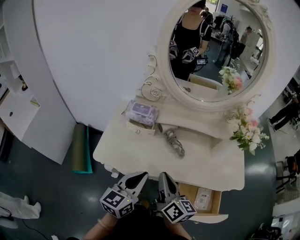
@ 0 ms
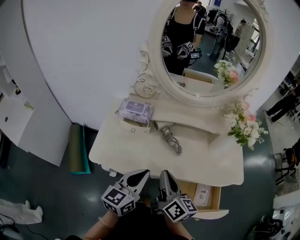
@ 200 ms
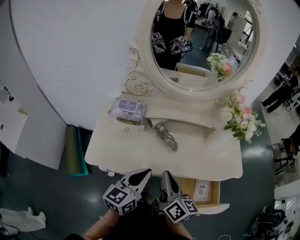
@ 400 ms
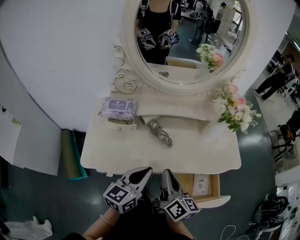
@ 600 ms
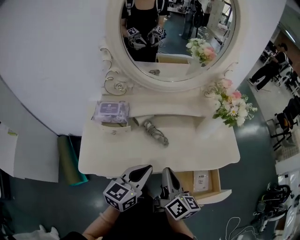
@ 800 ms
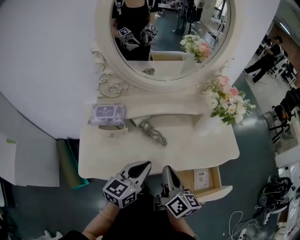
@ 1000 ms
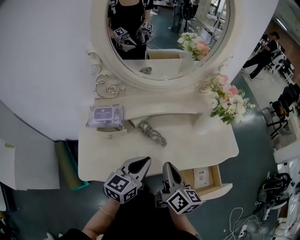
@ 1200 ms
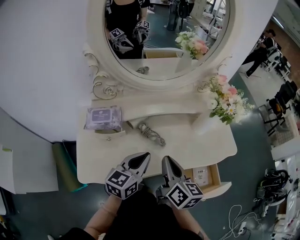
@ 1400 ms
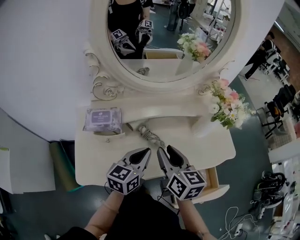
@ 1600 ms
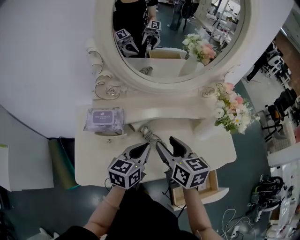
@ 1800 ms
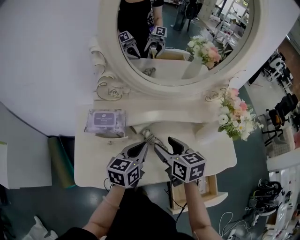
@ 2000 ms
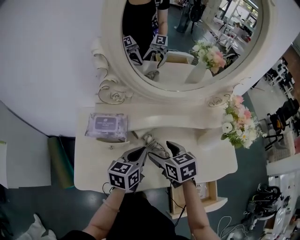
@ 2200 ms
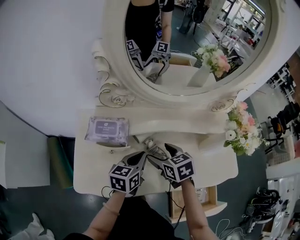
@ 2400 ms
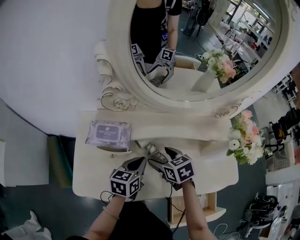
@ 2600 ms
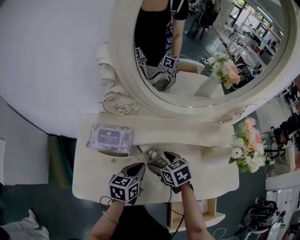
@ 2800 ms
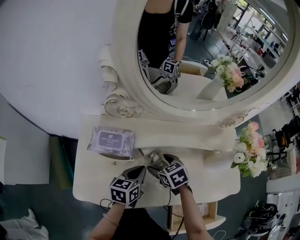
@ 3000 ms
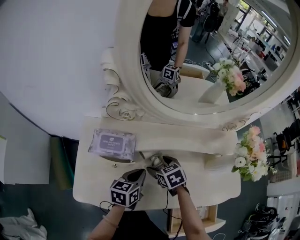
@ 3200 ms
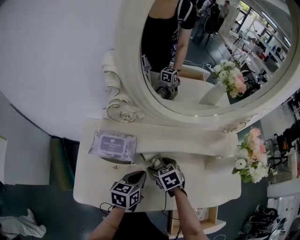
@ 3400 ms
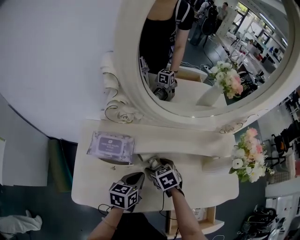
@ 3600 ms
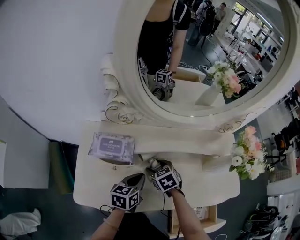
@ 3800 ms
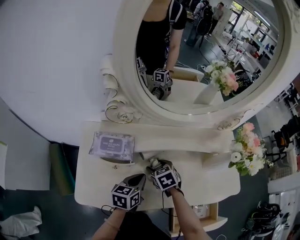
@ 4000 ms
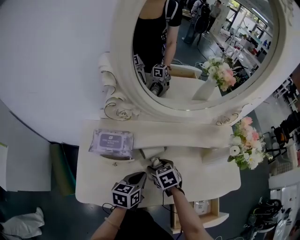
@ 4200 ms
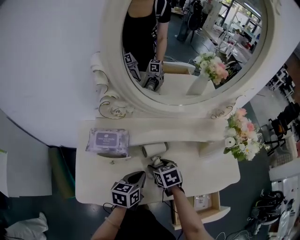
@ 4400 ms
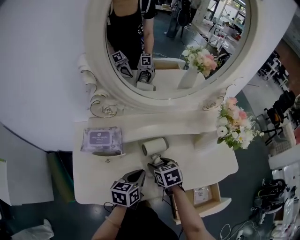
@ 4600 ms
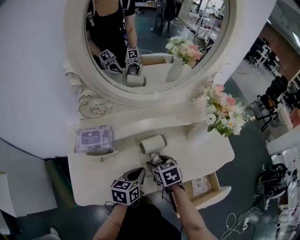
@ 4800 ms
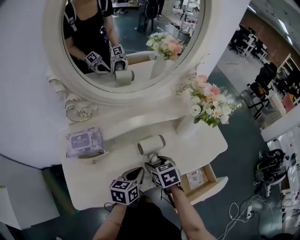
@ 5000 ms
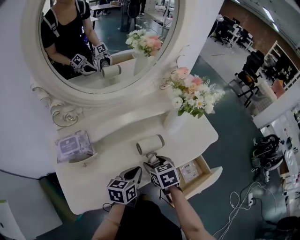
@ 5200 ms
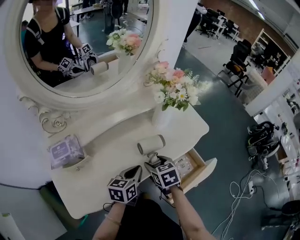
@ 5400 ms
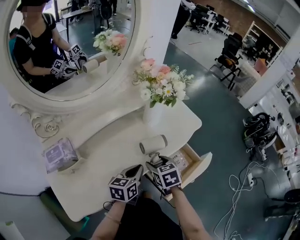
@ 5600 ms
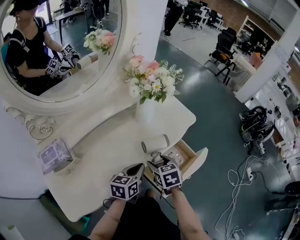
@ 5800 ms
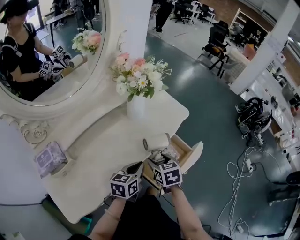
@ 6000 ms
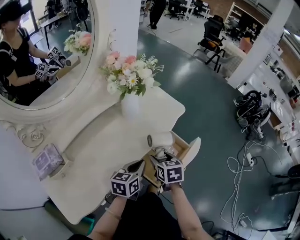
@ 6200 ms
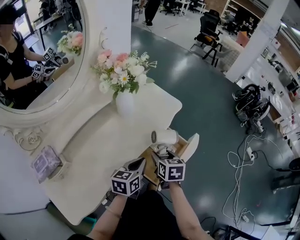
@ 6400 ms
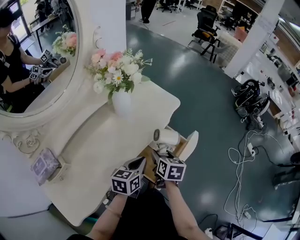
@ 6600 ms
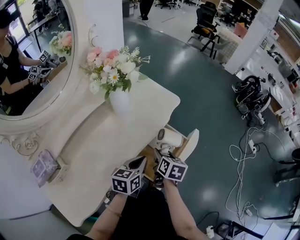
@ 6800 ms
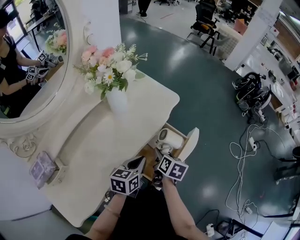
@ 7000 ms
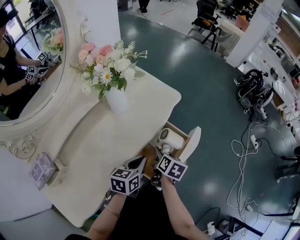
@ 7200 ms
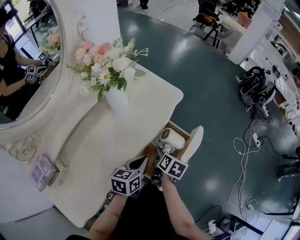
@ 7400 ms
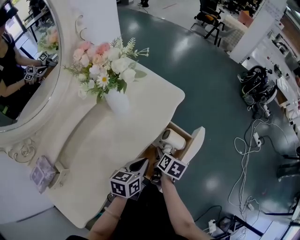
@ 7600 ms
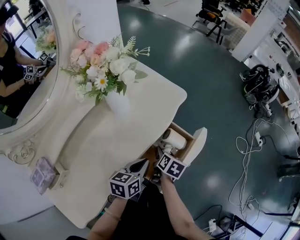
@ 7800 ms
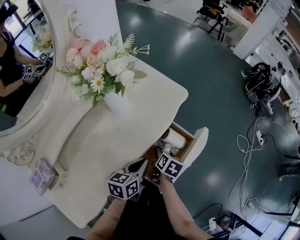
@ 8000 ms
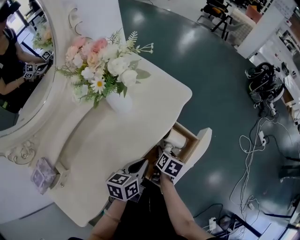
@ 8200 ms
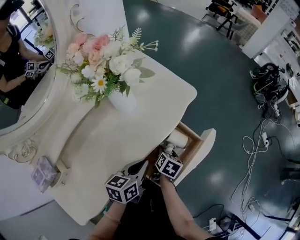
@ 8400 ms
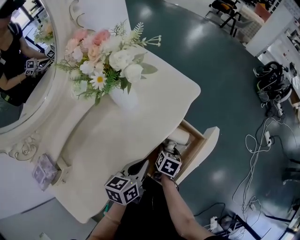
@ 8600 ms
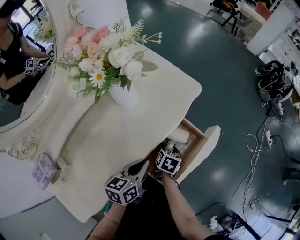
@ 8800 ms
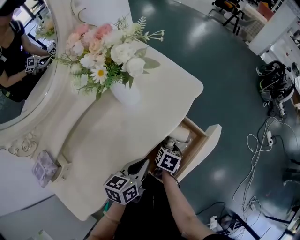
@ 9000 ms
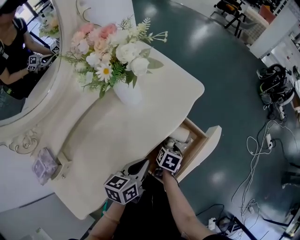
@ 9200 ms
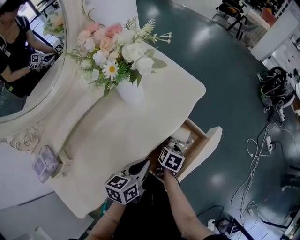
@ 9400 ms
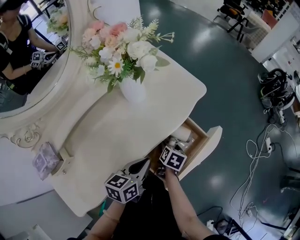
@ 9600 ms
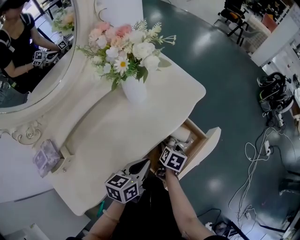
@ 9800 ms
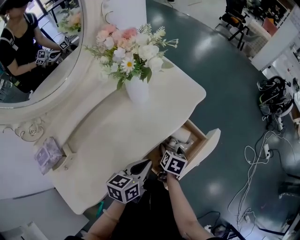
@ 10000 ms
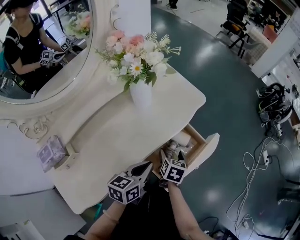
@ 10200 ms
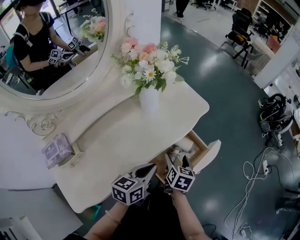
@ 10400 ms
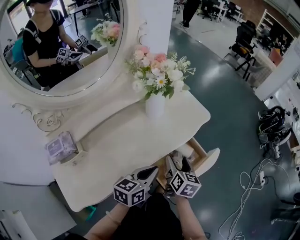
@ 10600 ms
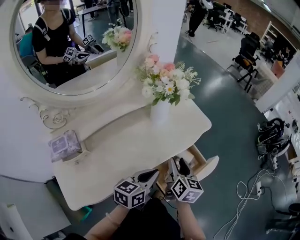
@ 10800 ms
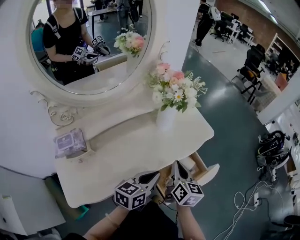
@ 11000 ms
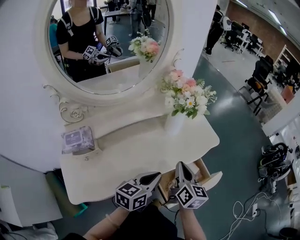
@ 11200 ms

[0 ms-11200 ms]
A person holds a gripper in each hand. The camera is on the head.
0 ms to 1600 ms: Both grippers travel together forward, about 15 cm. The left gripper swivels about 20 degrees. The right gripper swivels about 30 degrees.
1600 ms to 3200 ms: The right gripper is displaced downward and forward by approximately 25 cm, tips its fingers downward by roughly 40 degrees, and opens. The left gripper goes roughly 15 cm downward, forward and to the left, and changes its angle by about 20 degrees.
3200 ms to 4800 ms: Both grippers travel together backward and to the right, some 10 cm. The right gripper changes its angle by roughly 20 degrees.
4800 ms to 6400 ms: The right gripper moves some 30 cm, and rotates some 60 degrees. The left gripper changes place by some 25 cm, and turns by roughly 40 degrees.
6400 ms to 8000 ms: The right gripper is displaced downward by roughly 10 cm, and rotates about 40 degrees.
8000 ms to 9600 ms: The grippers move only a little.
9600 ms to 11200 ms: The right gripper travels upward by approximately 30 cm, points its fingers roughly 40 degrees further upward, and closes, while the left gripper moves upward, some 10 cm.

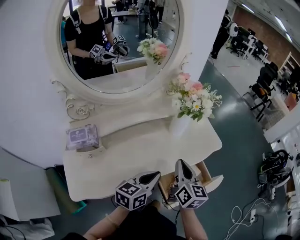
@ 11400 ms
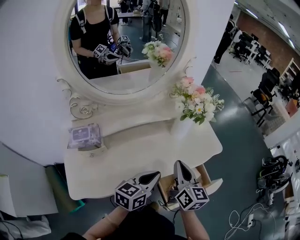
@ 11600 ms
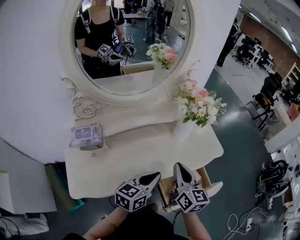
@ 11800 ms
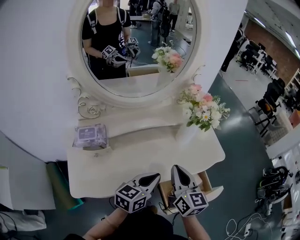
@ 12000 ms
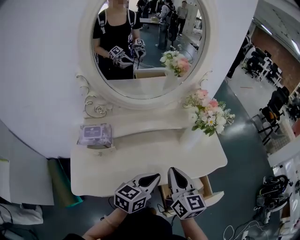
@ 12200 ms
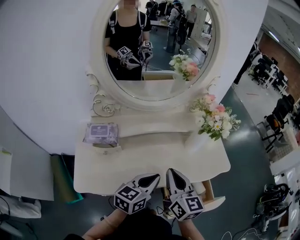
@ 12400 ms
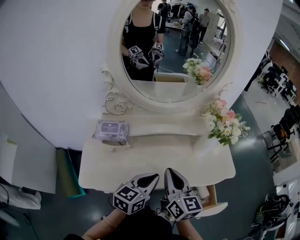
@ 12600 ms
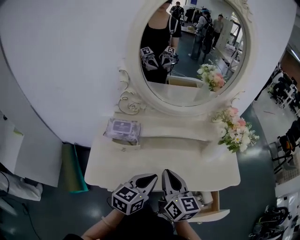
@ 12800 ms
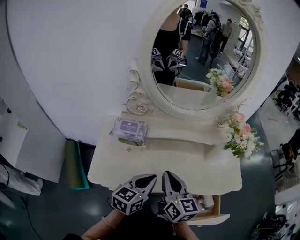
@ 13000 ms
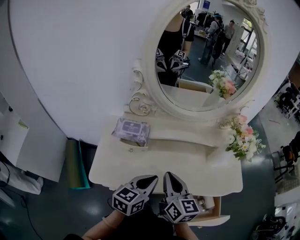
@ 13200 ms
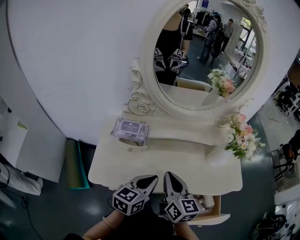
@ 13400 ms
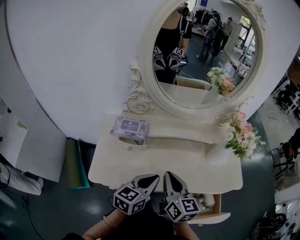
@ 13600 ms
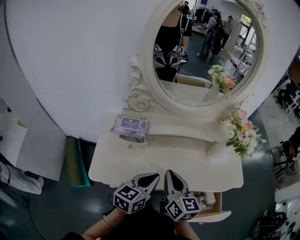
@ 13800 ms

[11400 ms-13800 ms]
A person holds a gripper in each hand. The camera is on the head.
11400 ms to 12600 ms: The left gripper shifts roughly 10 cm to the left. The right gripper shifts some 15 cm to the left, and changes its angle by some 30 degrees.
12600 ms to 13800 ms: Both grippers move to the left, about 5 cm.

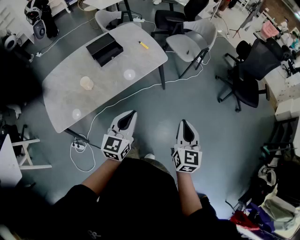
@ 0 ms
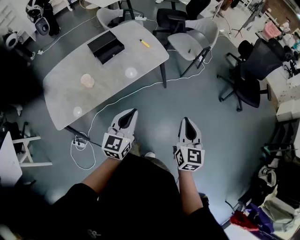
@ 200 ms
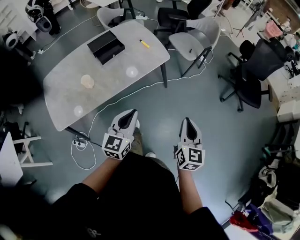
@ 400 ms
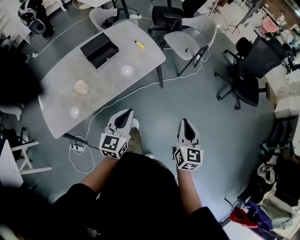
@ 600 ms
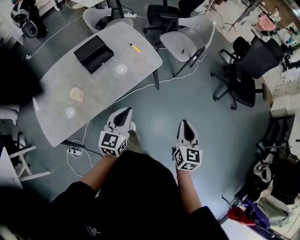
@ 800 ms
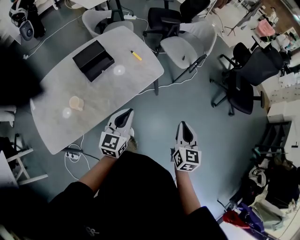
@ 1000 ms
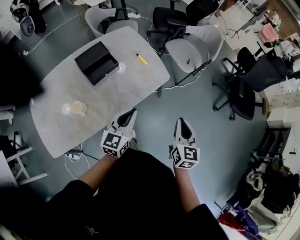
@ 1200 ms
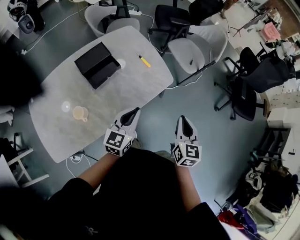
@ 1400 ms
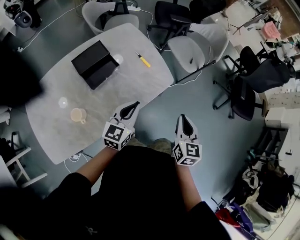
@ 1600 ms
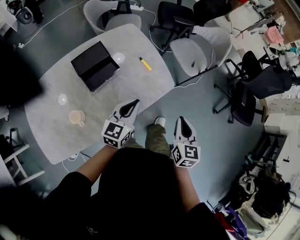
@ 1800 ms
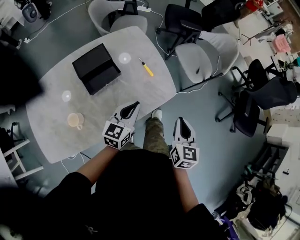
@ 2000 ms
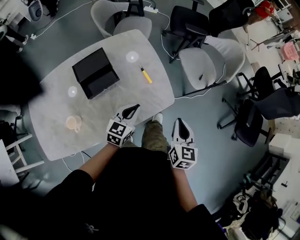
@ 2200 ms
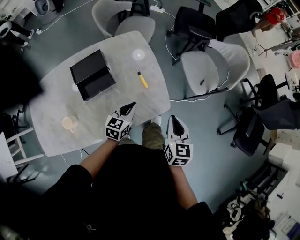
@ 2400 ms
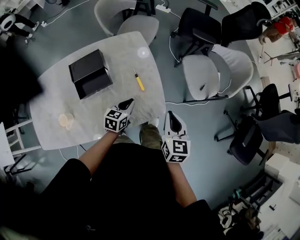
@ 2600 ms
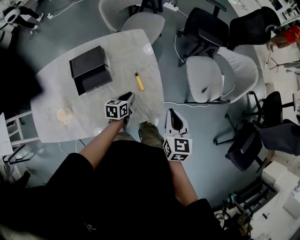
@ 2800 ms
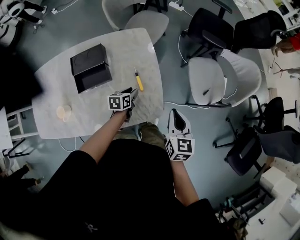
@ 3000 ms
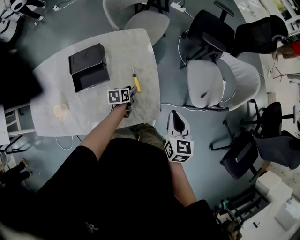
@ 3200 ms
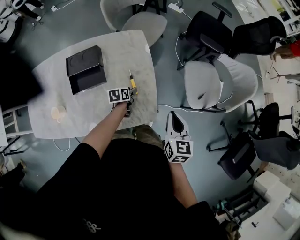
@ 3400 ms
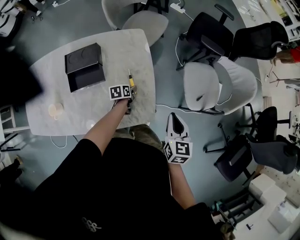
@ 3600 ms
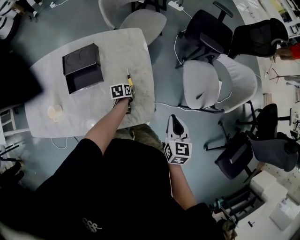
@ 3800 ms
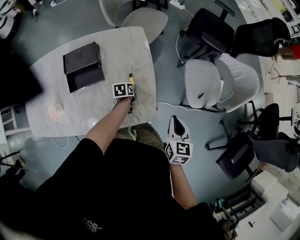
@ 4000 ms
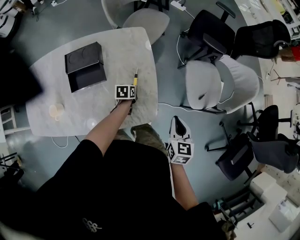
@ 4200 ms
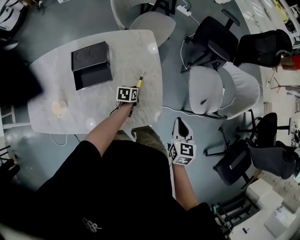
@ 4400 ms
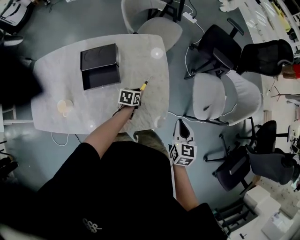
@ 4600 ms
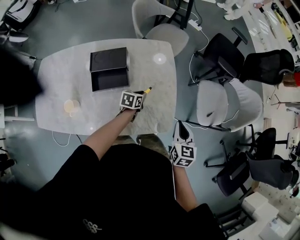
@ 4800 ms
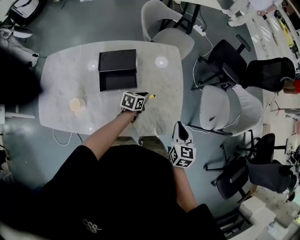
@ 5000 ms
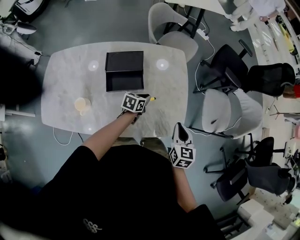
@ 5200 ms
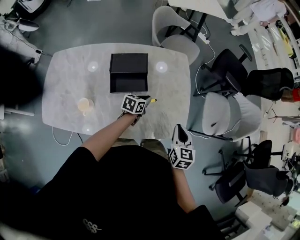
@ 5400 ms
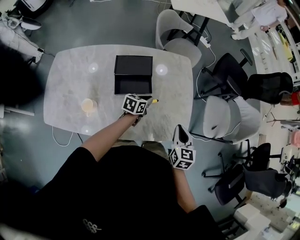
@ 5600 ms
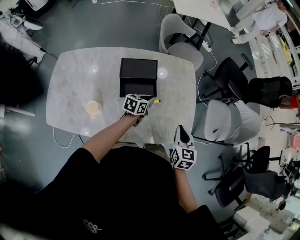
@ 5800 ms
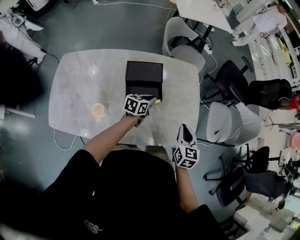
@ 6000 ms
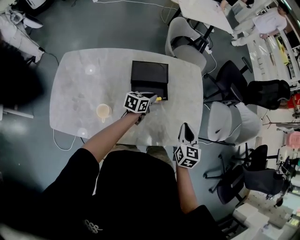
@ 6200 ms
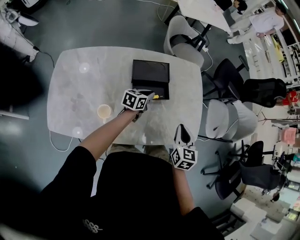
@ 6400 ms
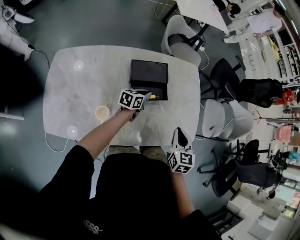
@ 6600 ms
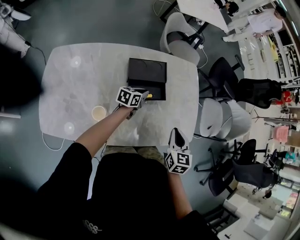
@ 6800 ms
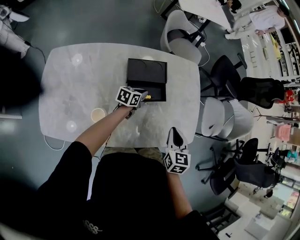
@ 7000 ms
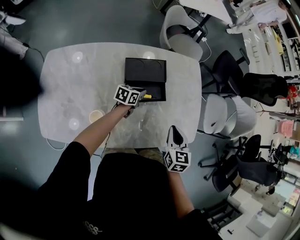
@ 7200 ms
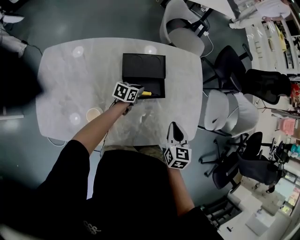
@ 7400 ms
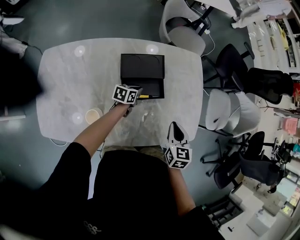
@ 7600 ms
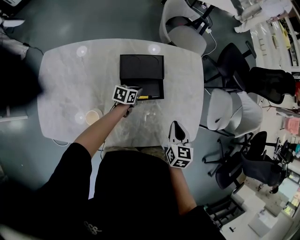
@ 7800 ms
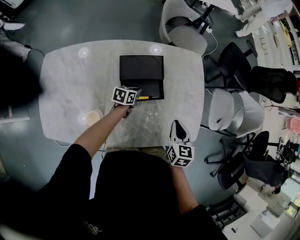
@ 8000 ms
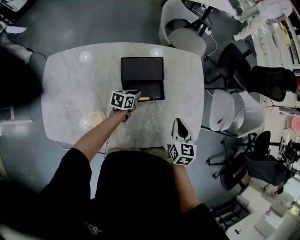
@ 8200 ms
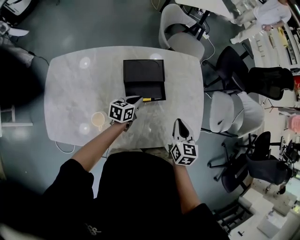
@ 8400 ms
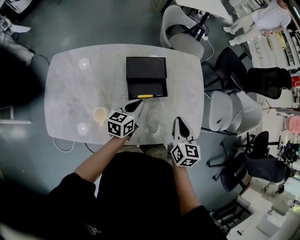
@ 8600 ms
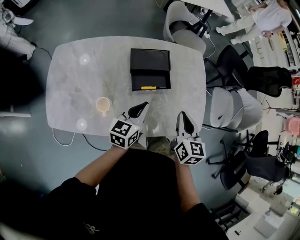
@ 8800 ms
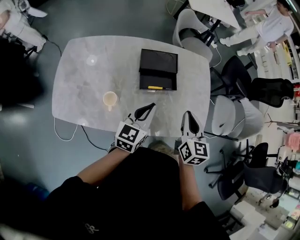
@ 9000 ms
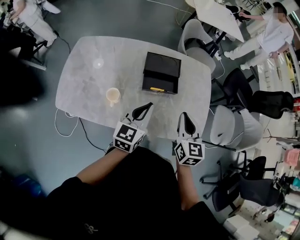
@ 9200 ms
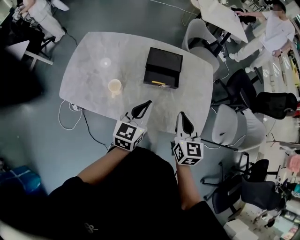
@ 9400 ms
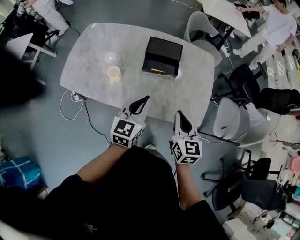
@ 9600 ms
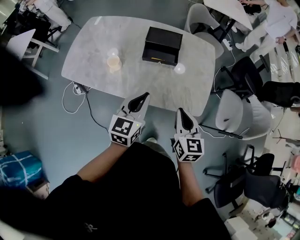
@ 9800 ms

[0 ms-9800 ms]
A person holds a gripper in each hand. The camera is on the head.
0 ms to 1400 ms: Both grippers travel together forward and to the left, about 30 cm.
1400 ms to 2800 ms: The right gripper heads forward, covering approximately 35 cm, and swivels roughly 30 degrees, while the left gripper shifts some 40 cm forward and downward, and turns by some 50 degrees.
2800 ms to 4200 ms: The right gripper heads downward and to the right, covering roughly 10 cm. Meanwhile the left gripper goes approximately 10 cm downward and forward, and opens, then closes again.
4200 ms to 5600 ms: The right gripper is displaced to the left by approximately 25 cm, while the left gripper goes about 20 cm to the left and upward, and rotates about 20 degrees.
5600 ms to 7000 ms: Both grippers travel together to the left, roughly 15 cm.
7000 ms to 8400 ms: The left gripper changes place by approximately 5 cm; the right gripper goes roughly 5 cm forward.
8400 ms to 9800 ms: The right gripper shifts by about 20 cm, and changes its angle by about 20 degrees. Meanwhile the left gripper shifts by approximately 35 cm, and rotates approximately 40 degrees.
